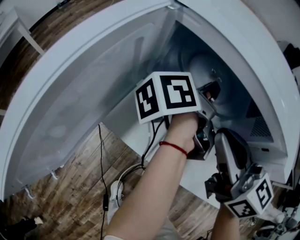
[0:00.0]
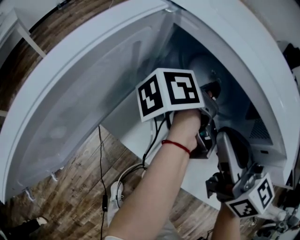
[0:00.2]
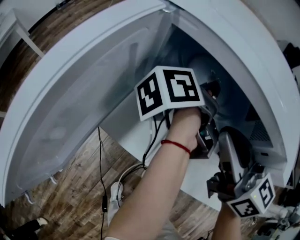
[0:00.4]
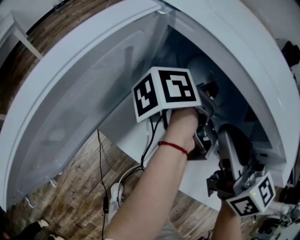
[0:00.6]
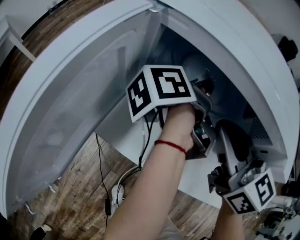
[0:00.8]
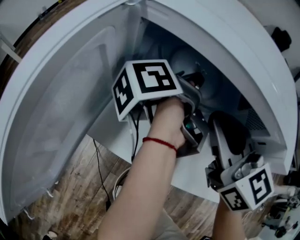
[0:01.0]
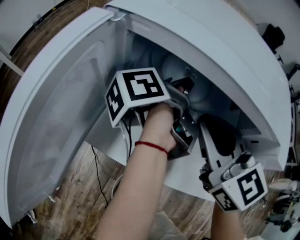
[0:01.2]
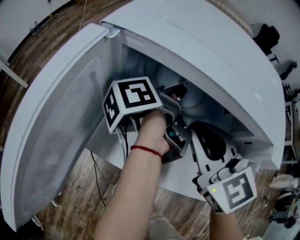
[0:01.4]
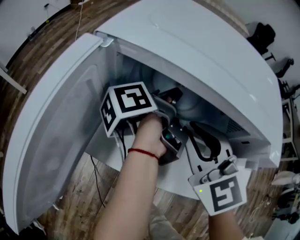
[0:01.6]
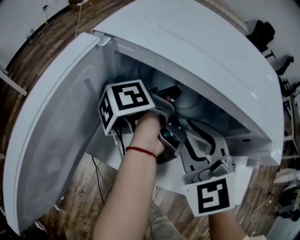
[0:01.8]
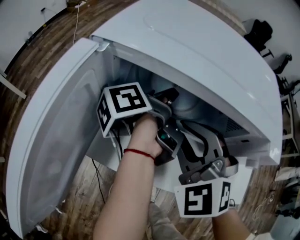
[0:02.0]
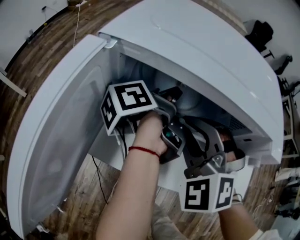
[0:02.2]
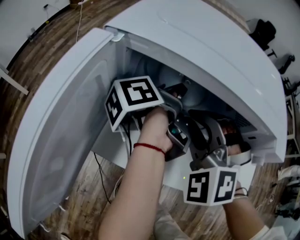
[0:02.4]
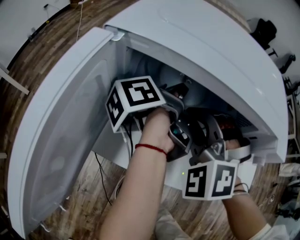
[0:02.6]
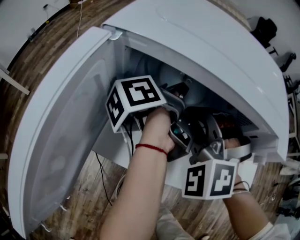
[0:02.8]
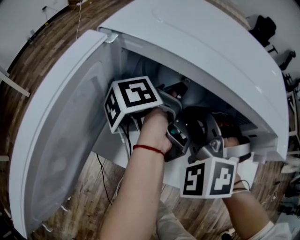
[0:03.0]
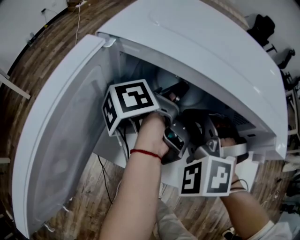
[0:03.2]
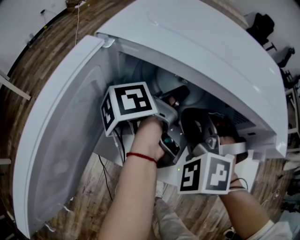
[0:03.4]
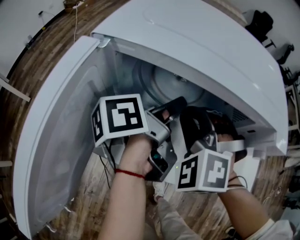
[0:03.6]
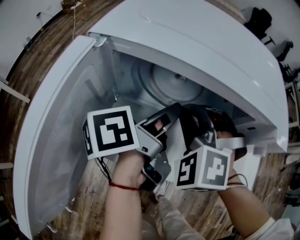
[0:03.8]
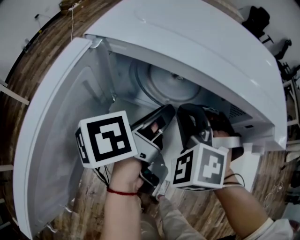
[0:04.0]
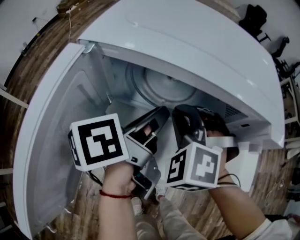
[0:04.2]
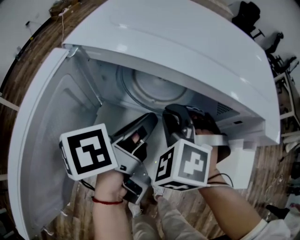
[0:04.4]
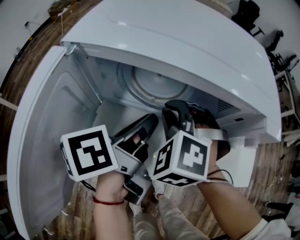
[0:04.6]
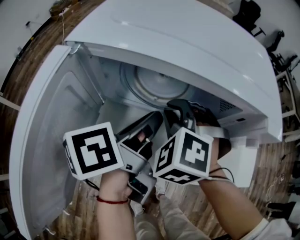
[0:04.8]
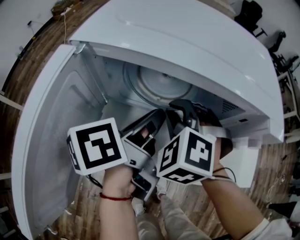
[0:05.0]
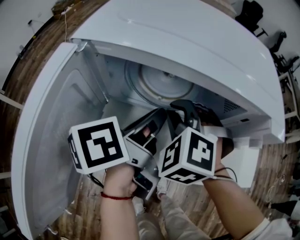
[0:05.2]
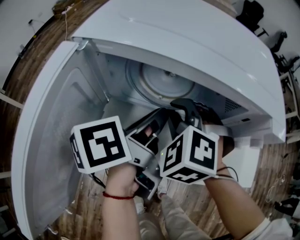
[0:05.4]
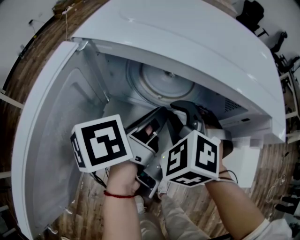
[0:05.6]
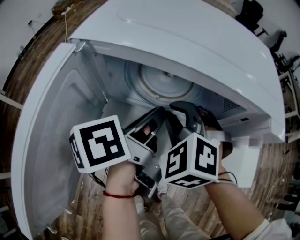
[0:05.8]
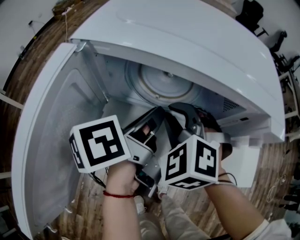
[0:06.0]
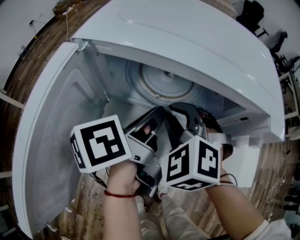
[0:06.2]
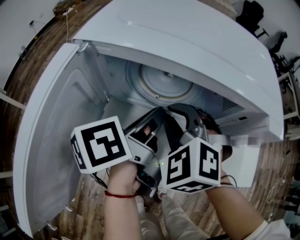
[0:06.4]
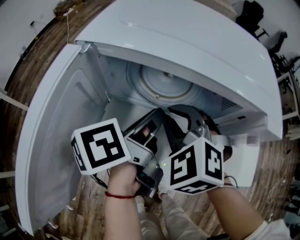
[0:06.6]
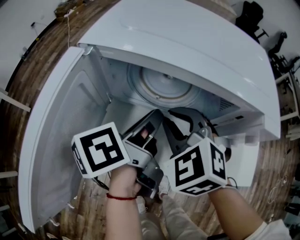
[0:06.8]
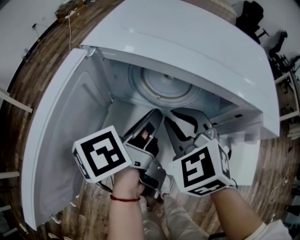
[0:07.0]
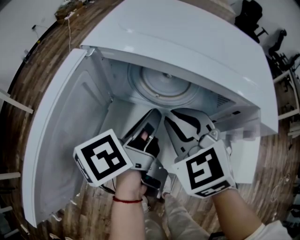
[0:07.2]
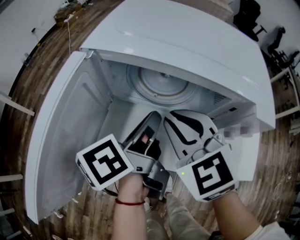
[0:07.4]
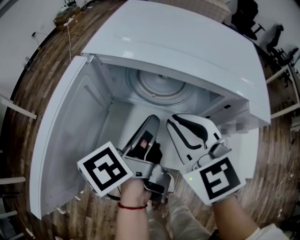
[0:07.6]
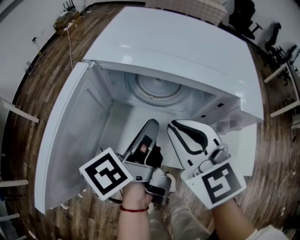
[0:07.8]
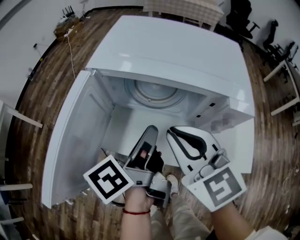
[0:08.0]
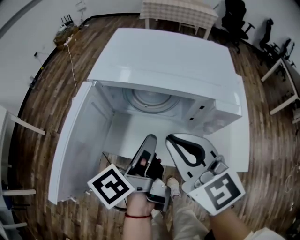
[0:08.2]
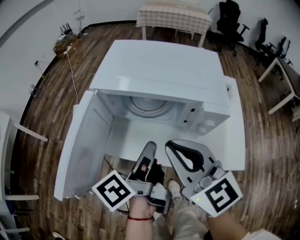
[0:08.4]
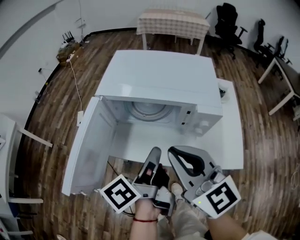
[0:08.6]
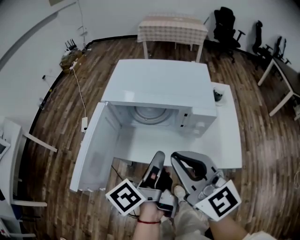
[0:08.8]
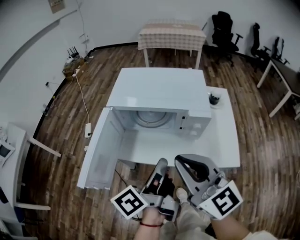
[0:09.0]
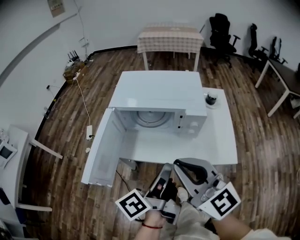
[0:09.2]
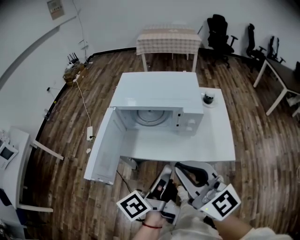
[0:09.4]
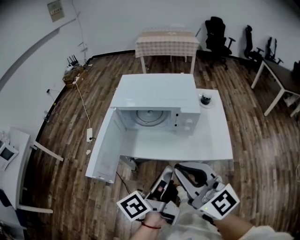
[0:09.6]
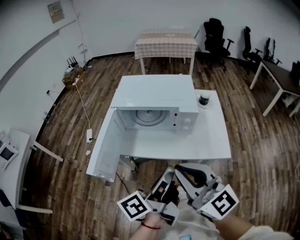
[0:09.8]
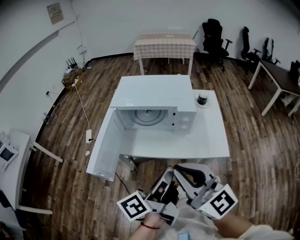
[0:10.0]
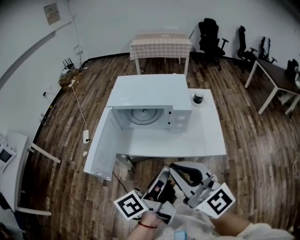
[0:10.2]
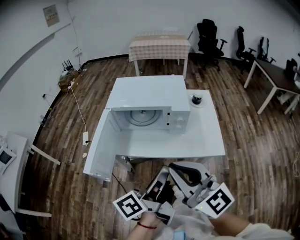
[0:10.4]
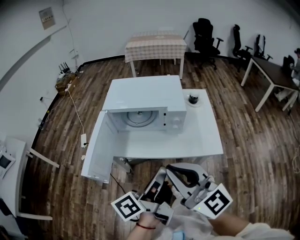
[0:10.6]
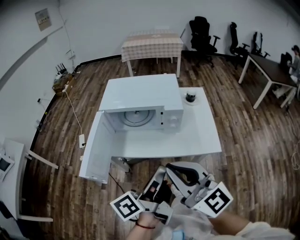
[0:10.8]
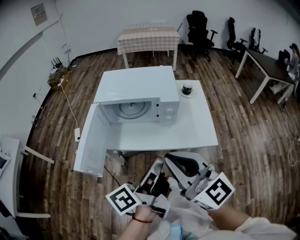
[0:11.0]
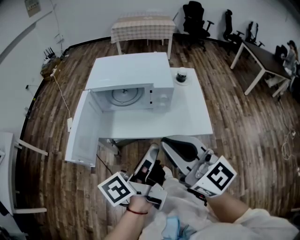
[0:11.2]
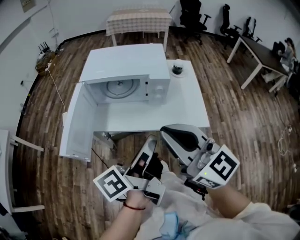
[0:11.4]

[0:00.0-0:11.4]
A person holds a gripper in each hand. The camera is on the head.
0:00.0 to 0:01.4: The right gripper swivels approximately 30 degrees.
0:01.4 to 0:02.8: The right gripper rotates around the line of its fingers by approximately 60 degrees, counterclockwise from behind.
0:05.6 to 0:07.2: The right gripper goes roughly 5 cm upward, and changes its angle by some 30 degrees.
0:07.2 to 0:08.6: The right gripper is displaced upward by approximately 15 cm, and points its fingers about 30 degrees further upward.
0:08.6 to 0:10.0: The right gripper moves about 20 cm.

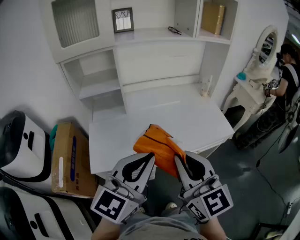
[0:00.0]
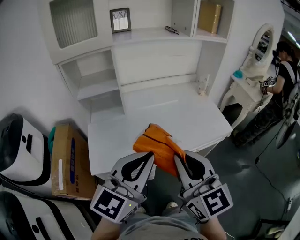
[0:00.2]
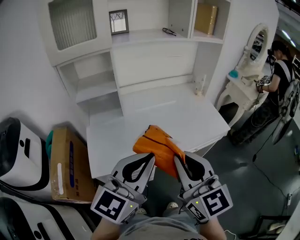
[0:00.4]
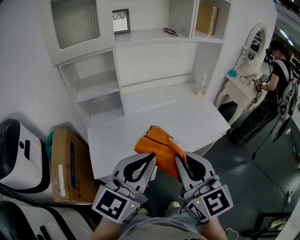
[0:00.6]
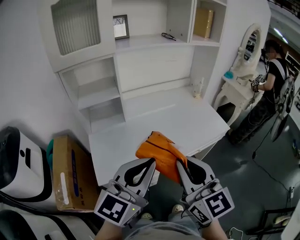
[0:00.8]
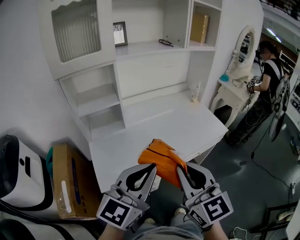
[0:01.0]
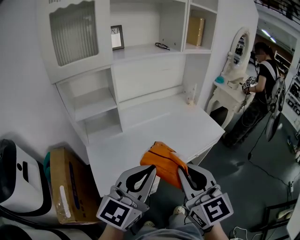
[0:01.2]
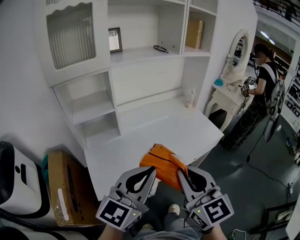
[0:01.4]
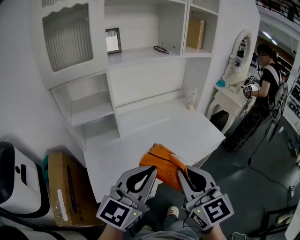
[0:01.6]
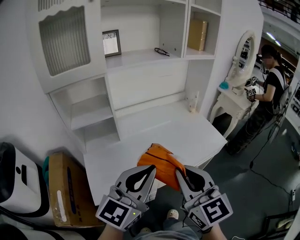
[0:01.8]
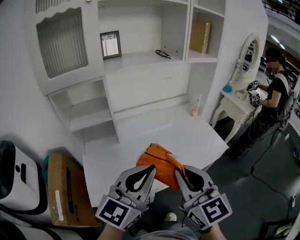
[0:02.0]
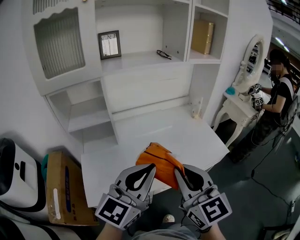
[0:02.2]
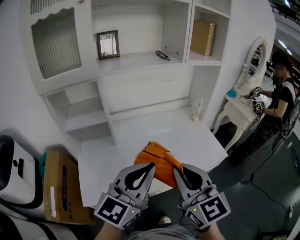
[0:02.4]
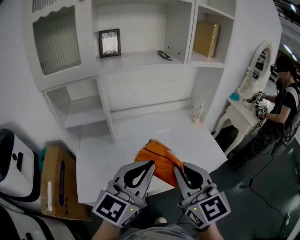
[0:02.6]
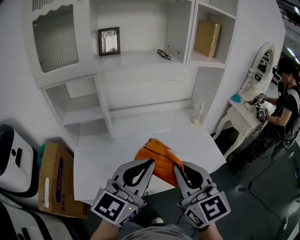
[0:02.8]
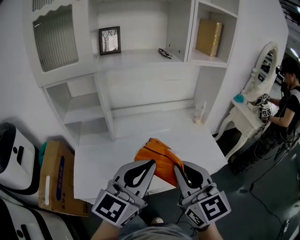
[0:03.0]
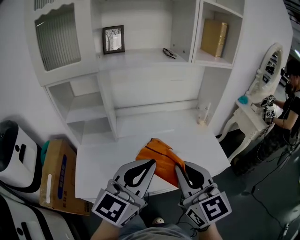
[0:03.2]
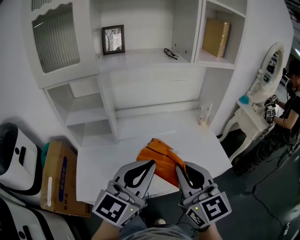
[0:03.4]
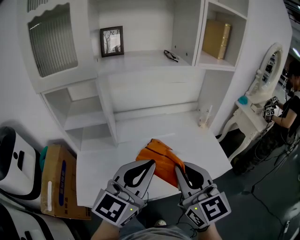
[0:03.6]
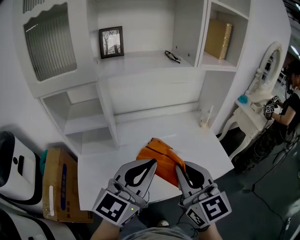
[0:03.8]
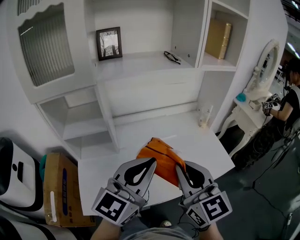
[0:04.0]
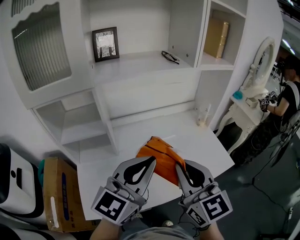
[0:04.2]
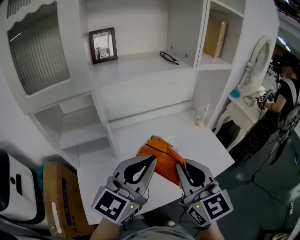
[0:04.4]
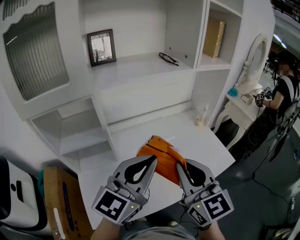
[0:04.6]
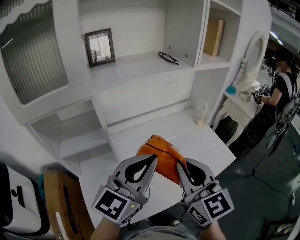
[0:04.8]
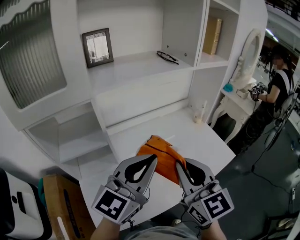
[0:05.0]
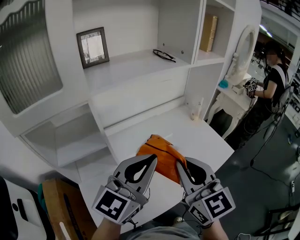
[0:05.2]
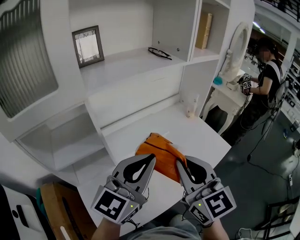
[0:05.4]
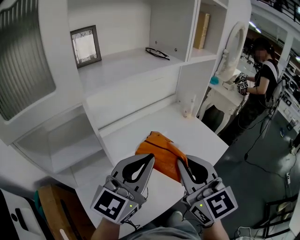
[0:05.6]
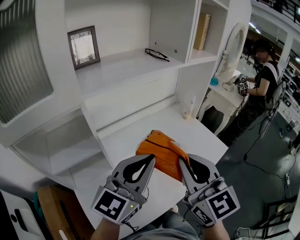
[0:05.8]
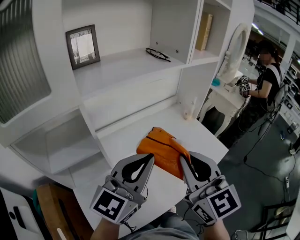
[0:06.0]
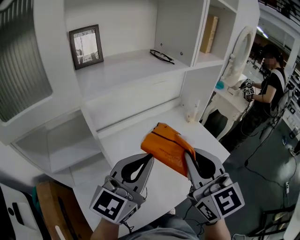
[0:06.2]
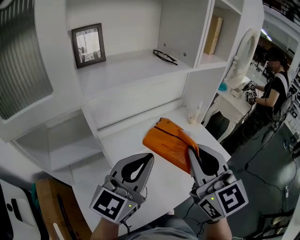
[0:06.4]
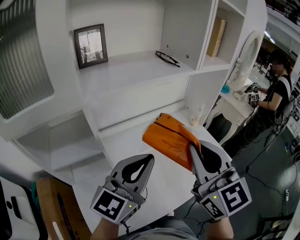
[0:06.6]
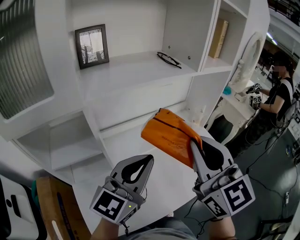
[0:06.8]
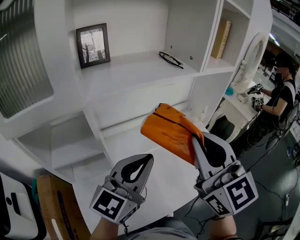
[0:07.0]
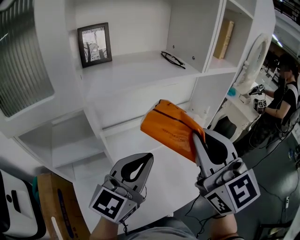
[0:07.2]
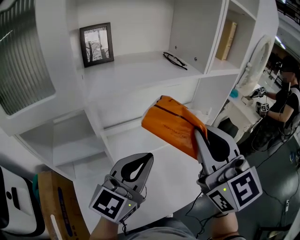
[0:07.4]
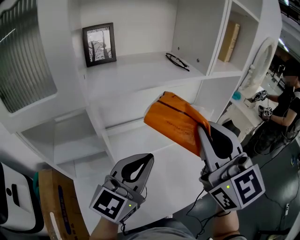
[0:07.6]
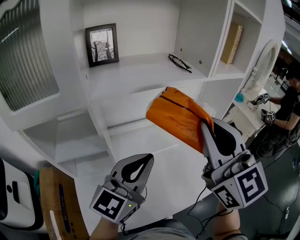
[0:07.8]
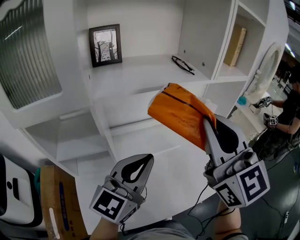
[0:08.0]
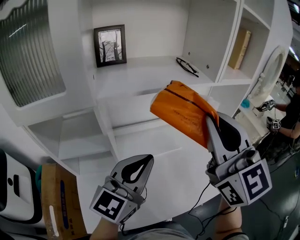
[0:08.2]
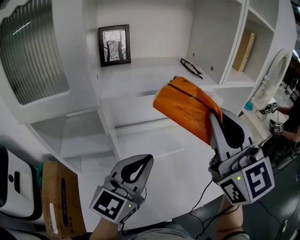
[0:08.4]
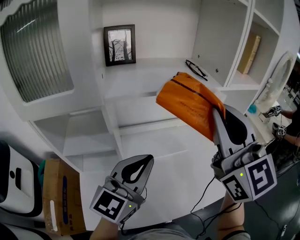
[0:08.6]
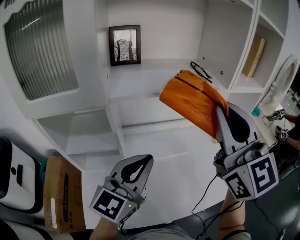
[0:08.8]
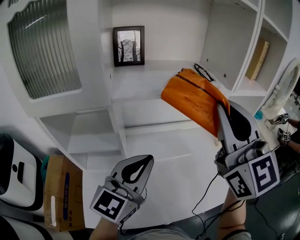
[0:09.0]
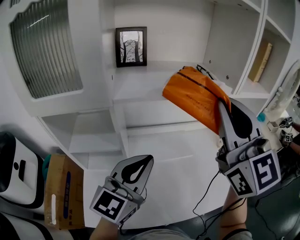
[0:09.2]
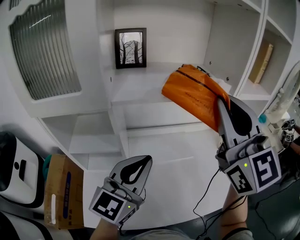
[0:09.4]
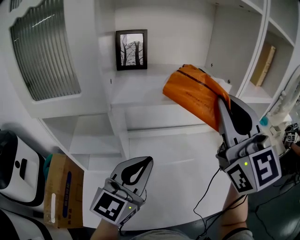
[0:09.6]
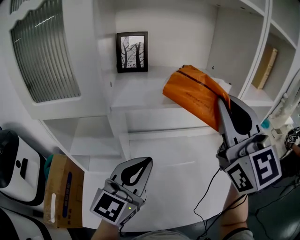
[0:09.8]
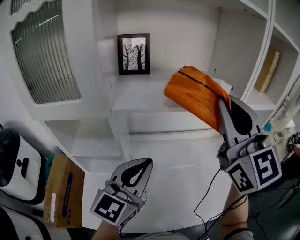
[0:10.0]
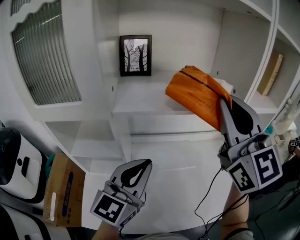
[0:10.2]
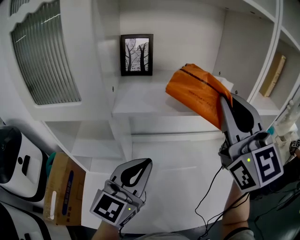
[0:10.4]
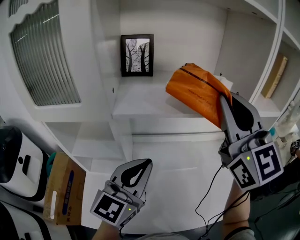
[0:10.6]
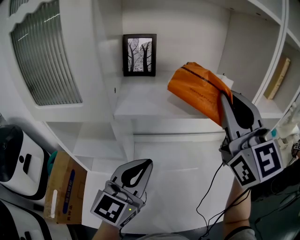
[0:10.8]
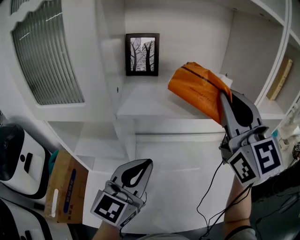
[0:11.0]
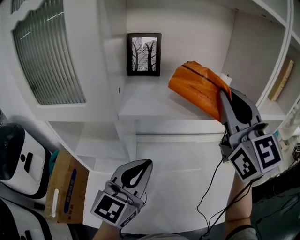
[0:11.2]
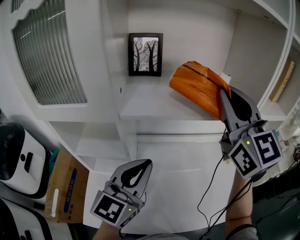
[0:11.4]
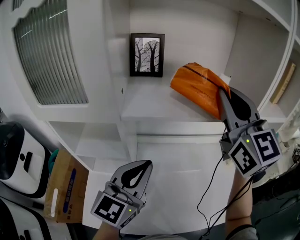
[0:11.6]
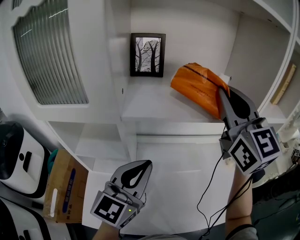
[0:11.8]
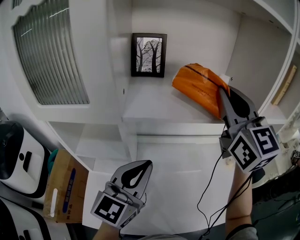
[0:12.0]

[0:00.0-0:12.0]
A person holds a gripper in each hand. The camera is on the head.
0:00.0 to 0:01.6: The left gripper changes place by some 5 cm.
0:01.6 to 0:03.0: The grippers both shift forward and to the right by about 15 cm.
0:03.0 to 0:04.4: The grippers both shift forward and to the left by about 10 cm.
0:04.4 to 0:06.0: The left gripper changes place by about 5 cm.
0:06.0 to 0:07.6: The right gripper goes roughly 15 cm upward and forward.
0:07.6 to 0:09.0: The right gripper goes some 10 cm upward and forward.
0:09.0 to 0:10.4: The right gripper is displaced forward by some 5 cm.
0:10.4 to 0:12.0: The right gripper goes about 5 cm forward.

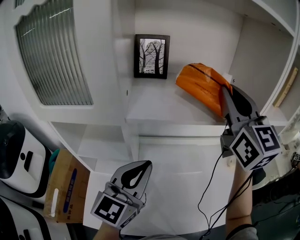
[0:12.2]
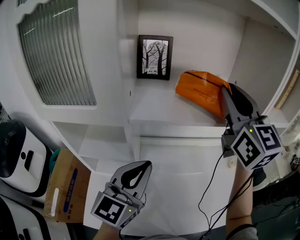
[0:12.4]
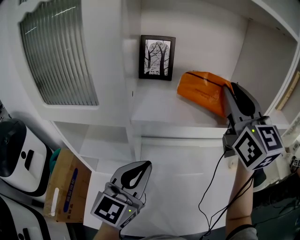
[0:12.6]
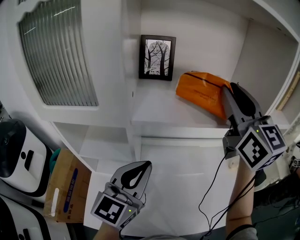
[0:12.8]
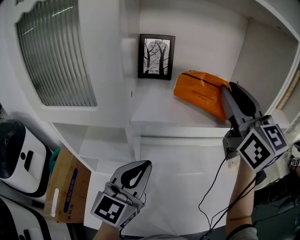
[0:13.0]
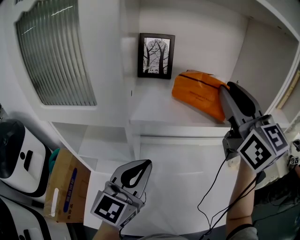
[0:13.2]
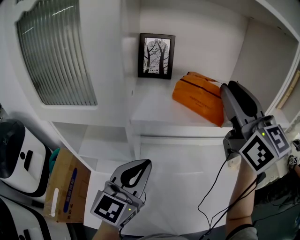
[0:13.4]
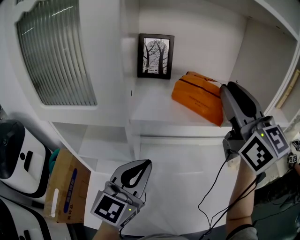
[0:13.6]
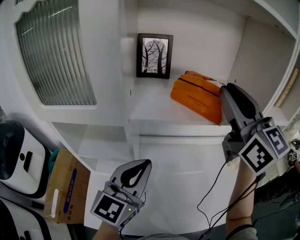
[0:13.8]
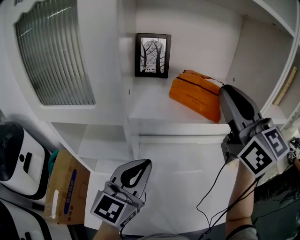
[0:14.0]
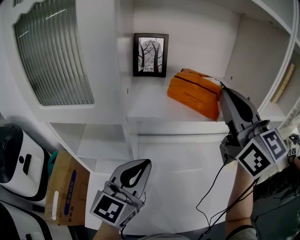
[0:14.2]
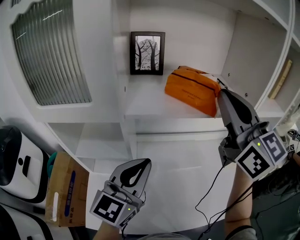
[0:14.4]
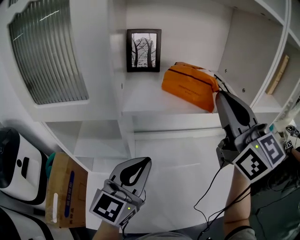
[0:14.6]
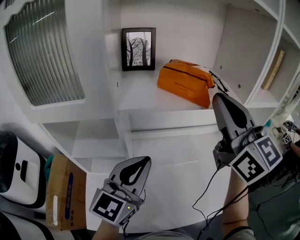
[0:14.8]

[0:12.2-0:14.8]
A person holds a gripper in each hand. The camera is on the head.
0:12.2 to 0:13.4: The grippers move only a little.
0:13.4 to 0:14.8: The right gripper travels backward by some 5 cm, and closes up.
